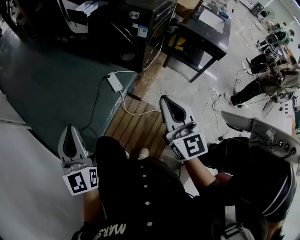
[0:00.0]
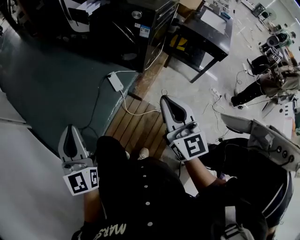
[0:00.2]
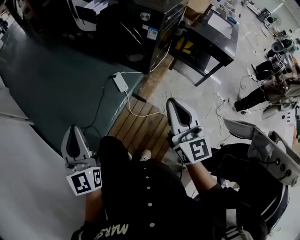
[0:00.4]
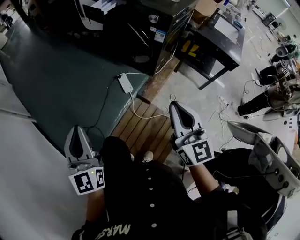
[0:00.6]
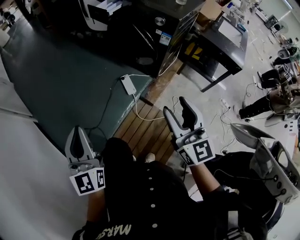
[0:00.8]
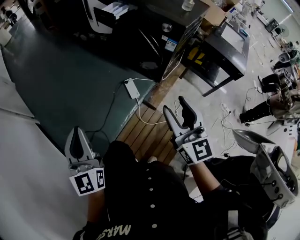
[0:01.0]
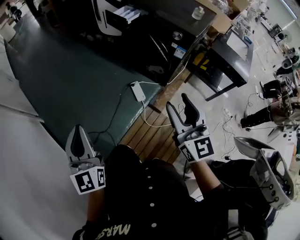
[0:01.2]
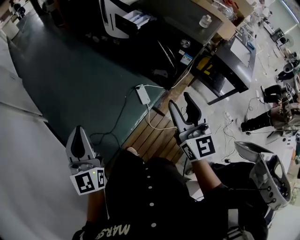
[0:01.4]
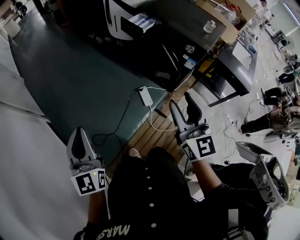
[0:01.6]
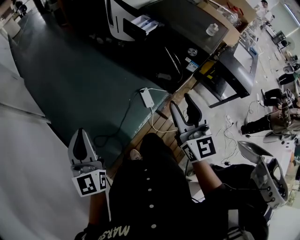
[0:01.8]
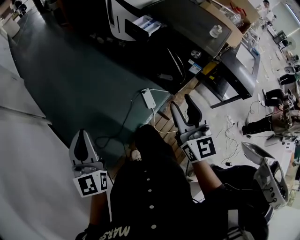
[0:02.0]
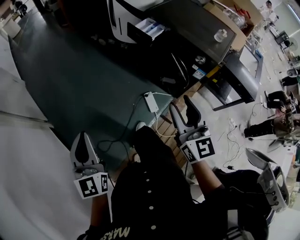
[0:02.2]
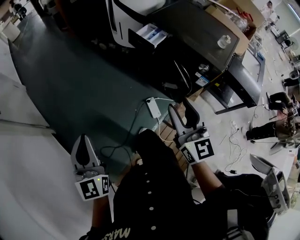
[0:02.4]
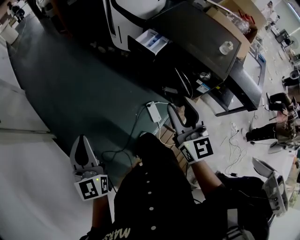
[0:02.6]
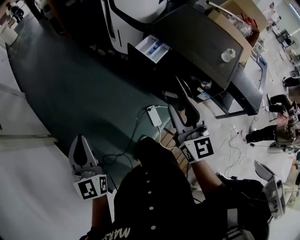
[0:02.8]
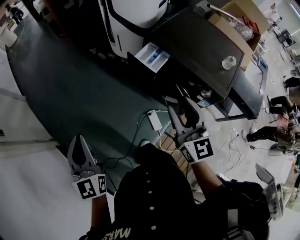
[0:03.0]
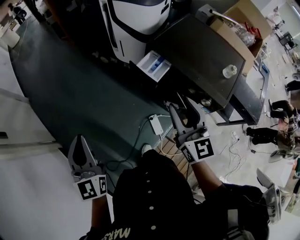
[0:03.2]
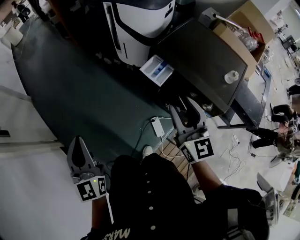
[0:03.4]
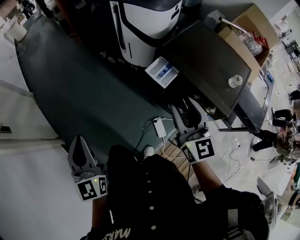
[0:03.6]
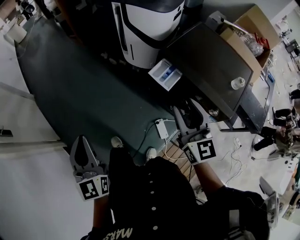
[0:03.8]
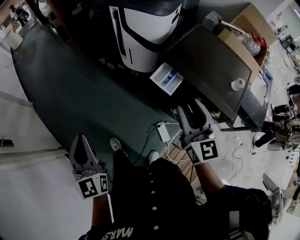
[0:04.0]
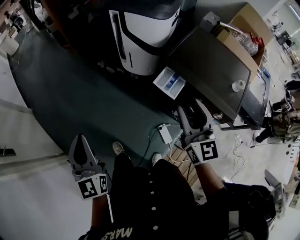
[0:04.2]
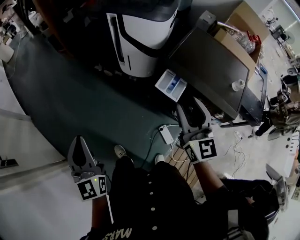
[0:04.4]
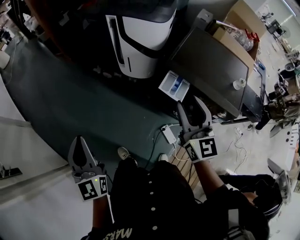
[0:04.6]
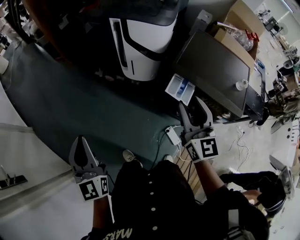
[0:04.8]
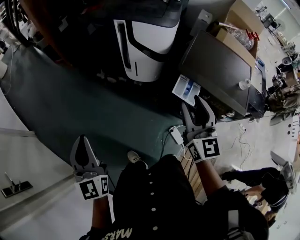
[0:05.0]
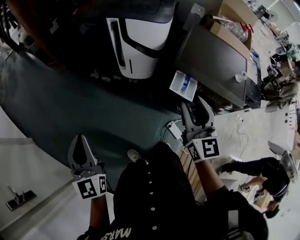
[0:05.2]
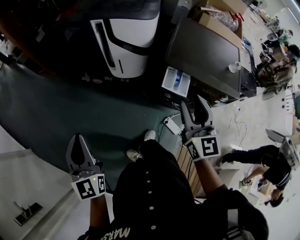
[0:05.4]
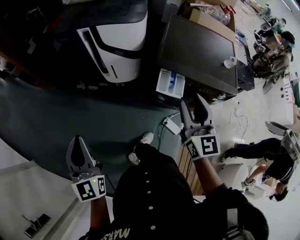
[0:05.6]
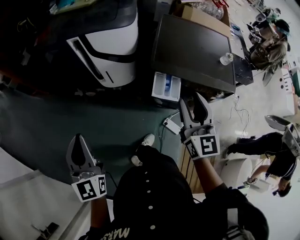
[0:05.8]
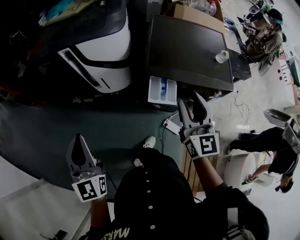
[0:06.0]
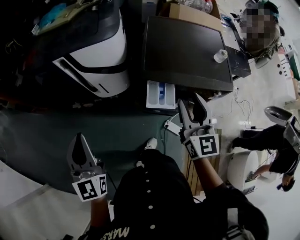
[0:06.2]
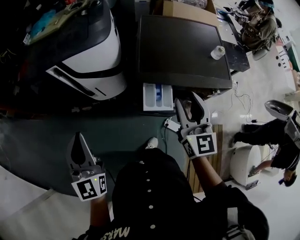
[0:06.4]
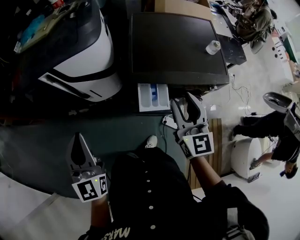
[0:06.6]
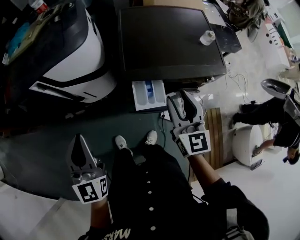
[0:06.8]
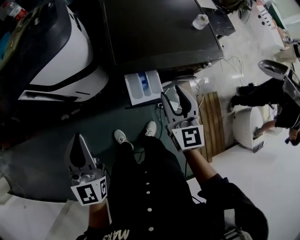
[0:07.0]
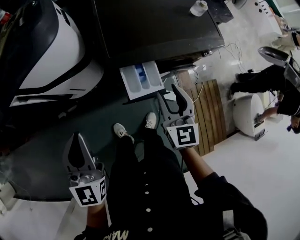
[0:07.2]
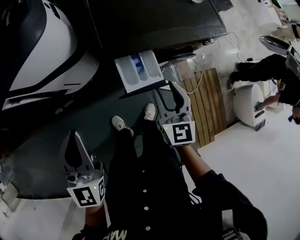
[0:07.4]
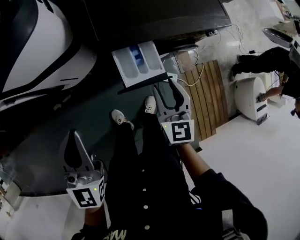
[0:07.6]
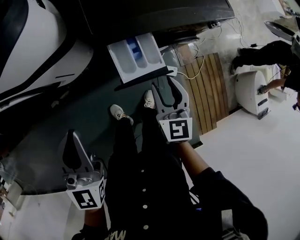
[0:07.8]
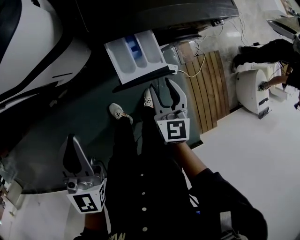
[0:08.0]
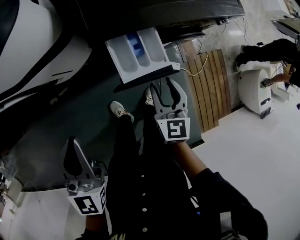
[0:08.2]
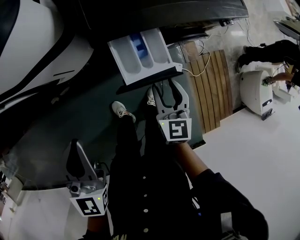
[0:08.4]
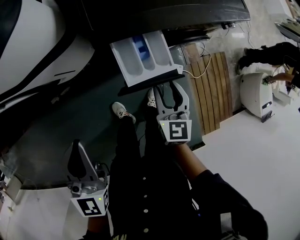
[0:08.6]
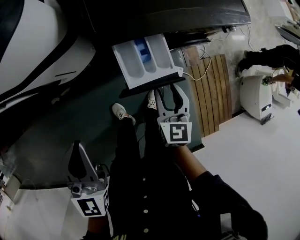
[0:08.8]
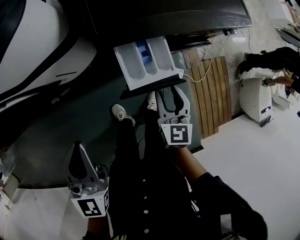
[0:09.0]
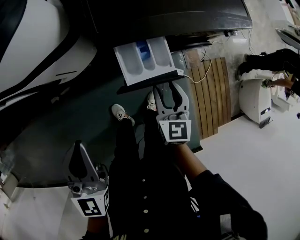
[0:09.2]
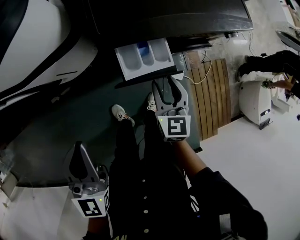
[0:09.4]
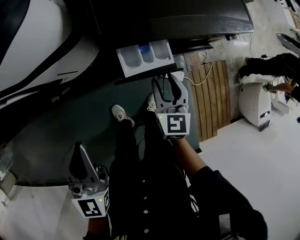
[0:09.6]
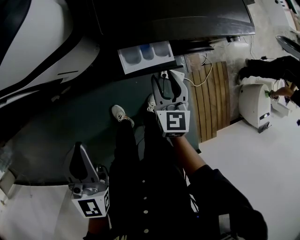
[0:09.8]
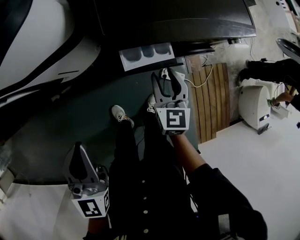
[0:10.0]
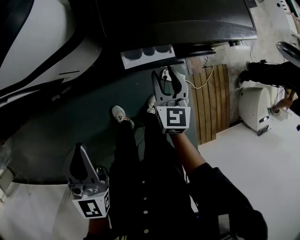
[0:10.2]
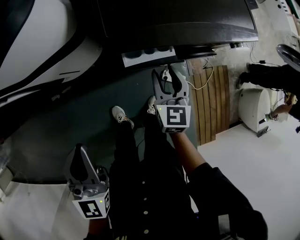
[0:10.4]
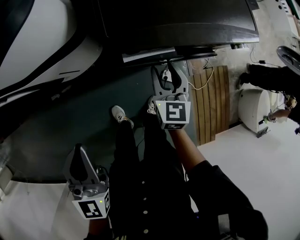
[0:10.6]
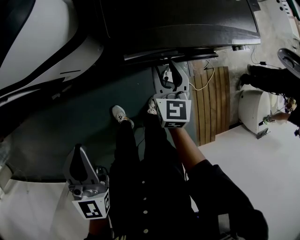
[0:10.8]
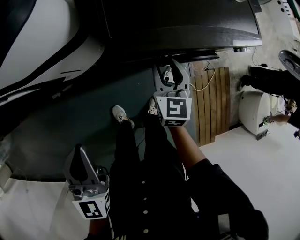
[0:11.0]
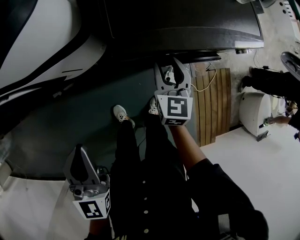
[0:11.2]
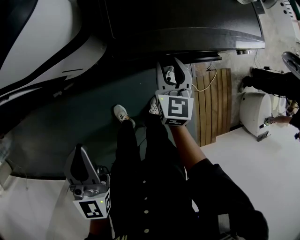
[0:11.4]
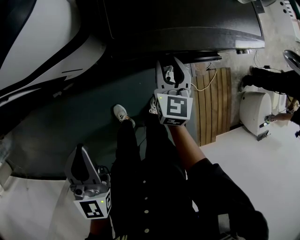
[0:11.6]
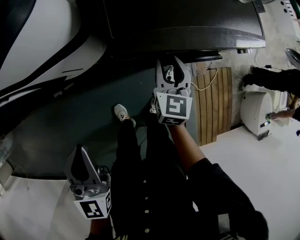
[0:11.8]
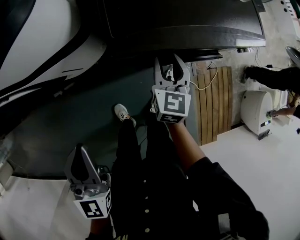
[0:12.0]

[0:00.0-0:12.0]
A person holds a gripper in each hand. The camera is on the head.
0:00.0 to 0:01.6: The left gripper heads to the left, forward and upward, covering approximately 25 cm; the right gripper is displaced forward, to the left and upward by some 25 cm, and opens.
0:01.6 to 0:03.0: Both grippers move forward, approximately 30 cm.
0:03.0 to 0:04.4: The left gripper is displaced forward and to the left by some 20 cm. The right gripper shifts about 15 cm forward and upward.
0:04.4 to 0:06.0: The right gripper moves about 10 cm, and turns by about 30 degrees, while the left gripper changes place by approximately 25 cm, and changes its angle by some 30 degrees.
0:06.0 to 0:07.6: The left gripper moves about 20 cm, and swivels some 40 degrees, while the right gripper moves downward, approximately 20 cm, and turns by some 30 degrees.
0:07.6 to 0:09.0: The left gripper travels downward by roughly 5 cm. Meanwhile the right gripper goes some 10 cm downward.
0:09.0 to 0:10.4: The right gripper is displaced forward by approximately 10 cm.
0:10.4 to 0:12.0: The right gripper goes about 5 cm forward.

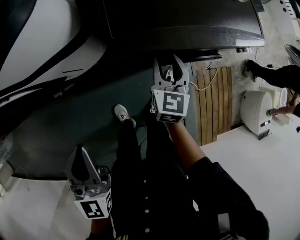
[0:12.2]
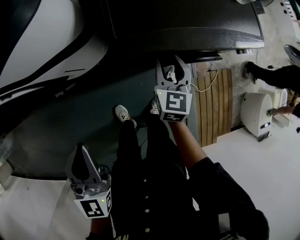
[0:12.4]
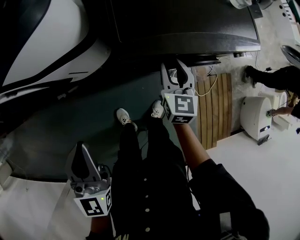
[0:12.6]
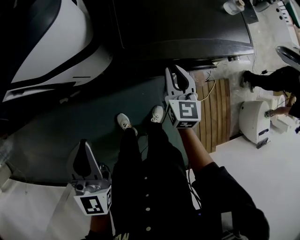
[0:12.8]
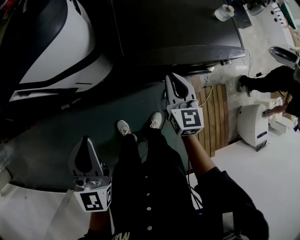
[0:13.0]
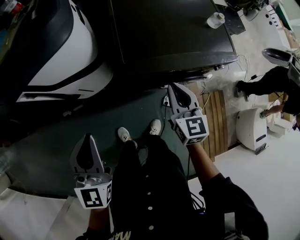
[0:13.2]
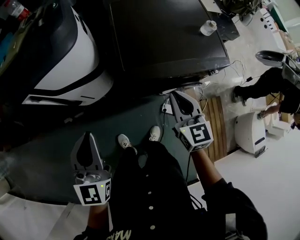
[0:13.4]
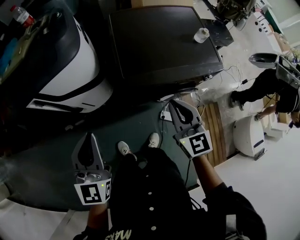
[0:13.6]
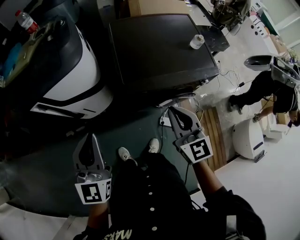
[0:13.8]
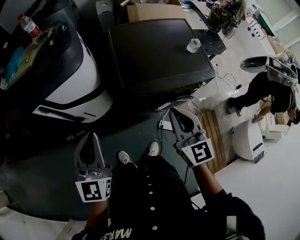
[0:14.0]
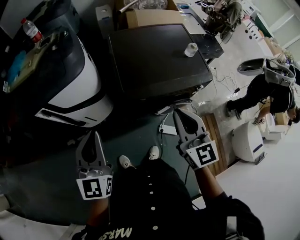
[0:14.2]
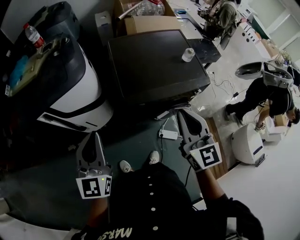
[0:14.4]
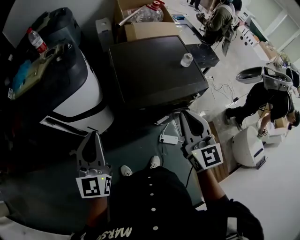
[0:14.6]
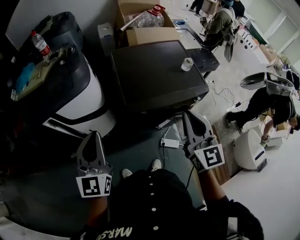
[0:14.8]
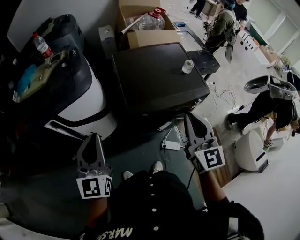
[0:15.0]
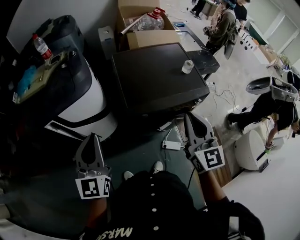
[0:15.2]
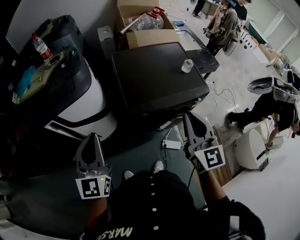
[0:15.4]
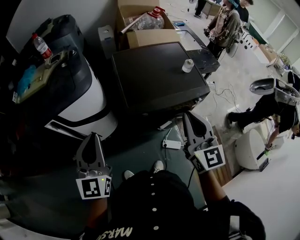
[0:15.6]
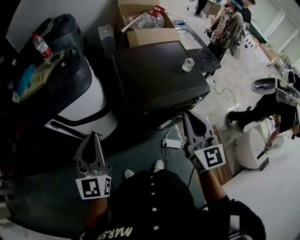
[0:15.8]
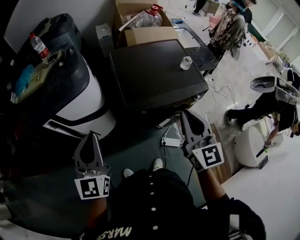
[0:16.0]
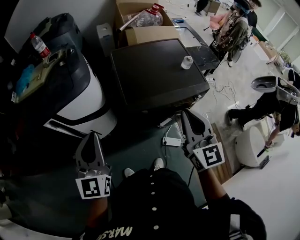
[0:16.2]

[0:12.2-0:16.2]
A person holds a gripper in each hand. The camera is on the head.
0:12.2 to 0:13.6: The left gripper shifts about 10 cm upward, while the right gripper goes some 25 cm upward, swivels some 30 degrees, and closes up.
0:13.6 to 0:14.8: The right gripper is displaced upward by some 15 cm, while the left gripper travels upward by approximately 5 cm.
0:14.8 to 0:16.2: The grippers stay close to where they were, moving slightly.

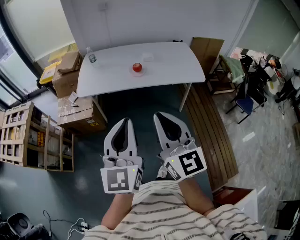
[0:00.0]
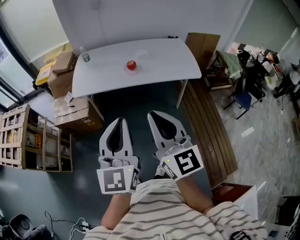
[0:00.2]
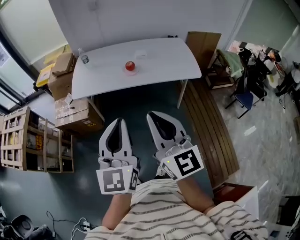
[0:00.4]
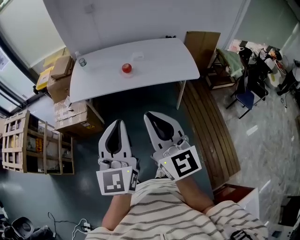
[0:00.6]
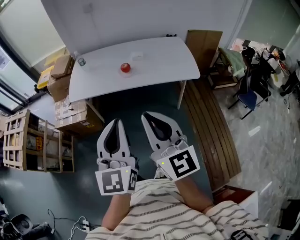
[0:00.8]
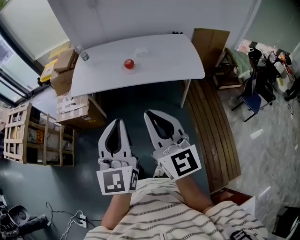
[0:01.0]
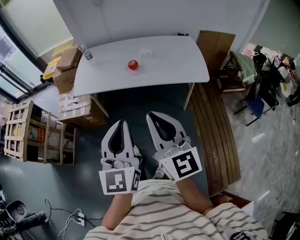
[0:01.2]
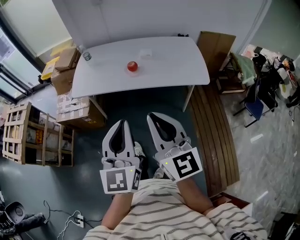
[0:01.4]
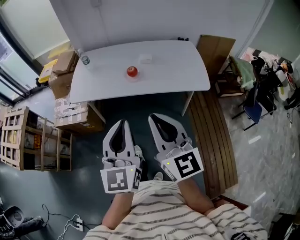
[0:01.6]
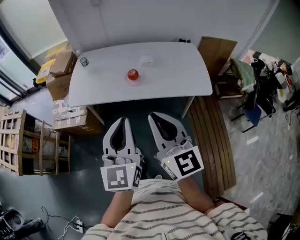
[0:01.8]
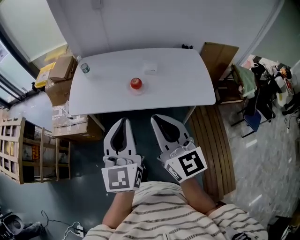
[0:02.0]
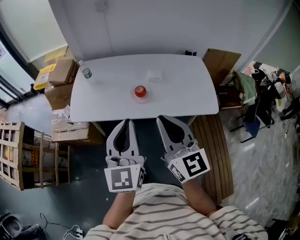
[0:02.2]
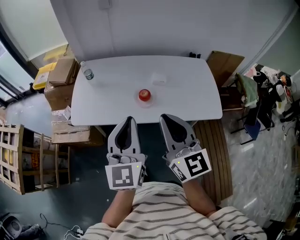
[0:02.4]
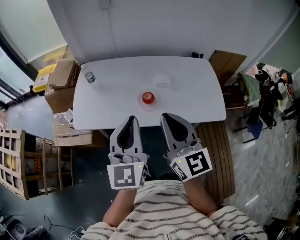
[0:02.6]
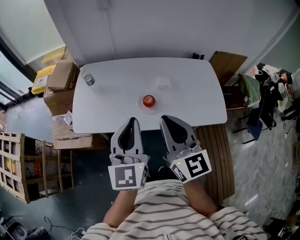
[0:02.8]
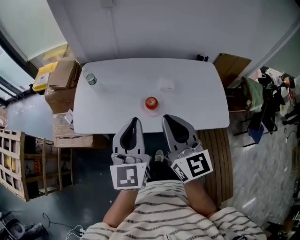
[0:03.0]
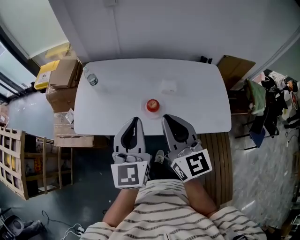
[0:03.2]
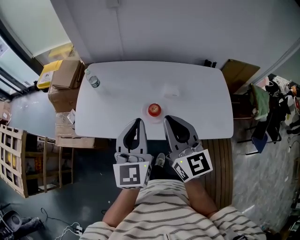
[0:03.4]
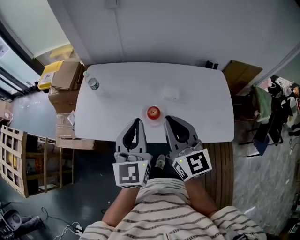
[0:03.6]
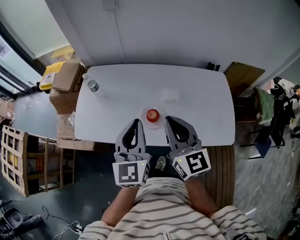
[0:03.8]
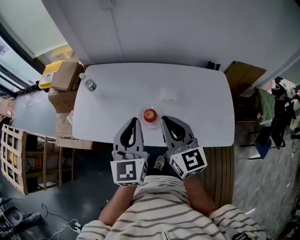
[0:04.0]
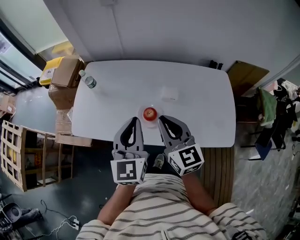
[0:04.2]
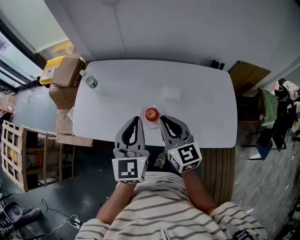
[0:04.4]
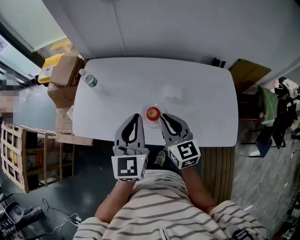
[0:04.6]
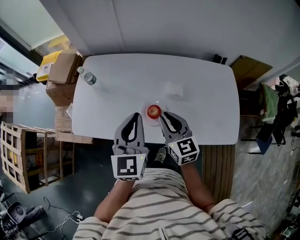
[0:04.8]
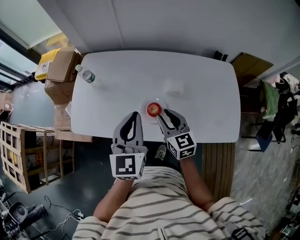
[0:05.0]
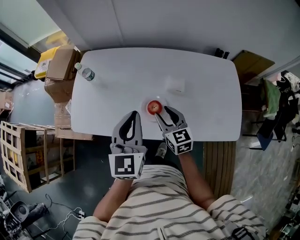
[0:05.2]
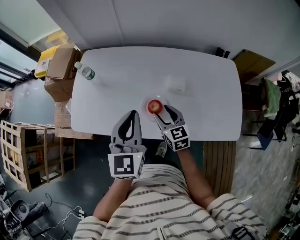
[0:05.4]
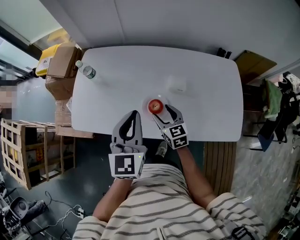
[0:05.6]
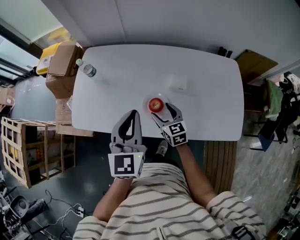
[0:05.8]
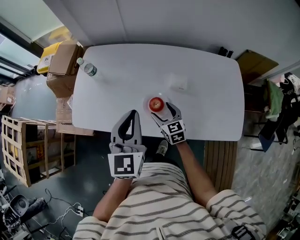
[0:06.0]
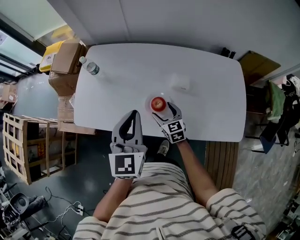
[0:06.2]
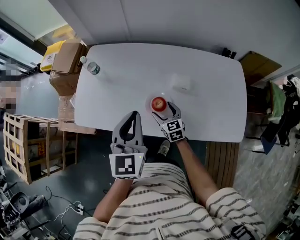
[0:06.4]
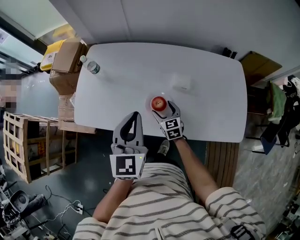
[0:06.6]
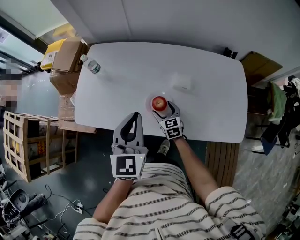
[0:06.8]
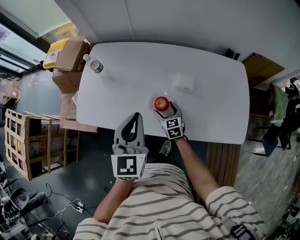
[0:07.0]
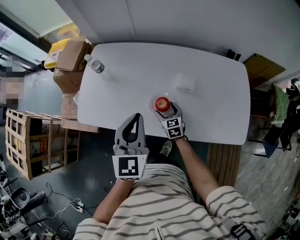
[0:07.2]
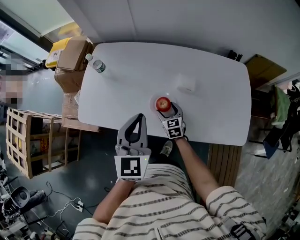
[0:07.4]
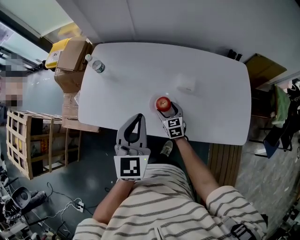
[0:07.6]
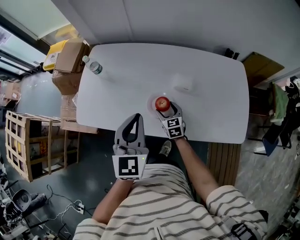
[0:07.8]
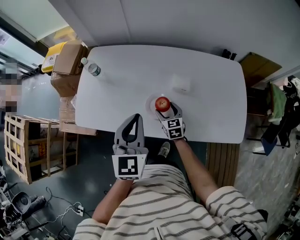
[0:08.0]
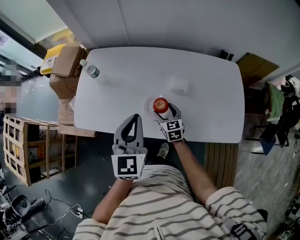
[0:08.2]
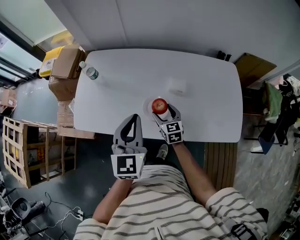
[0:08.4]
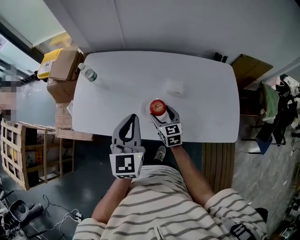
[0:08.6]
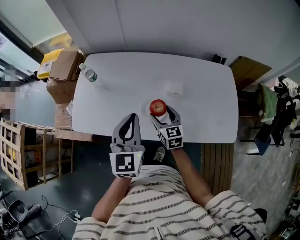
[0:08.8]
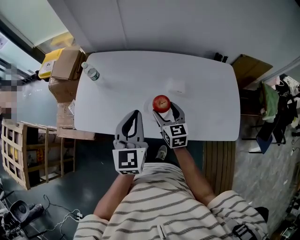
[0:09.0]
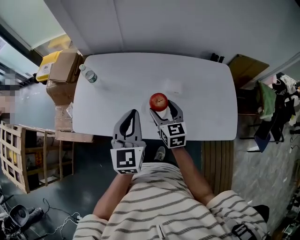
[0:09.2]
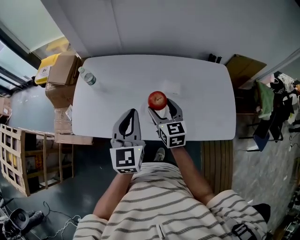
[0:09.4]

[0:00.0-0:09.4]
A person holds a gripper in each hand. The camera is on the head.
0:00.0 to 0:01.6: Both grippers move forward and to the right, approximately 15 cm.
0:01.6 to 0:03.2: The two grippers go approximately 35 cm forward.
0:03.2 to 0:04.8: The left gripper is displaced forward, downward and to the right by some 15 cm, while the right gripper moves downward and forward, roughly 20 cm.
0:04.8 to 0:06.2: The right gripper shifts some 20 cm downward, and opens its fingers.
0:06.2 to 0:07.8: There are only small adjustments of the grippers.
0:07.8 to 0:09.4: The right gripper goes some 20 cm upward.
